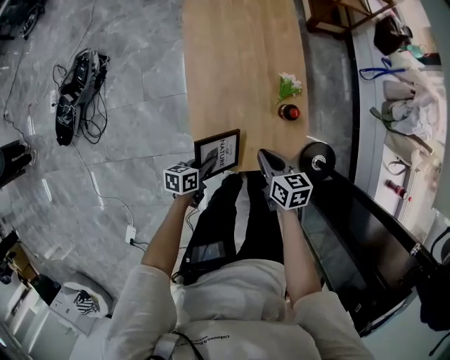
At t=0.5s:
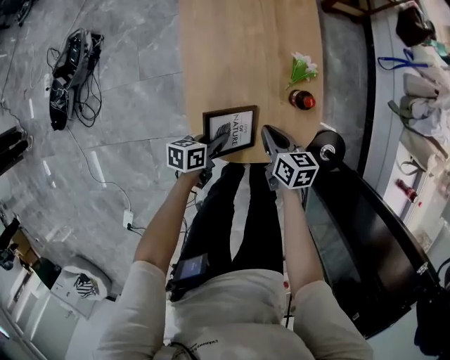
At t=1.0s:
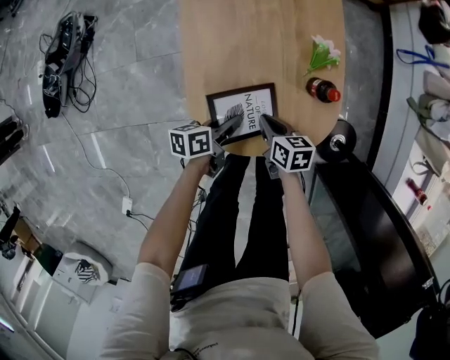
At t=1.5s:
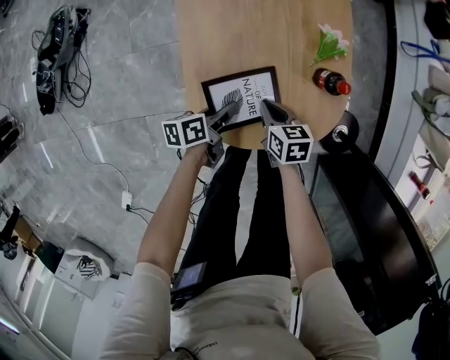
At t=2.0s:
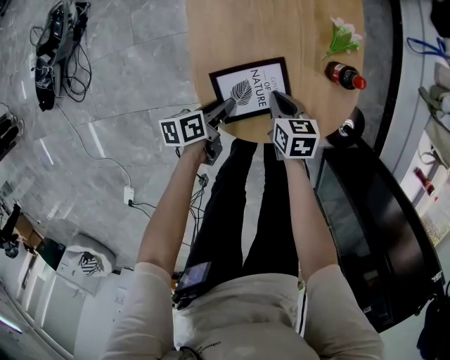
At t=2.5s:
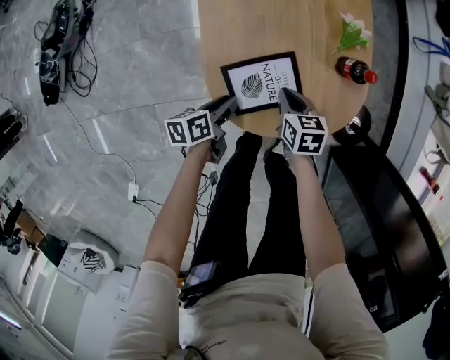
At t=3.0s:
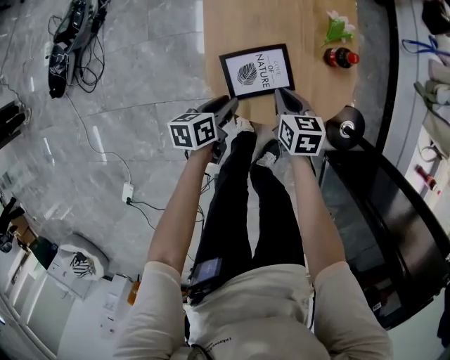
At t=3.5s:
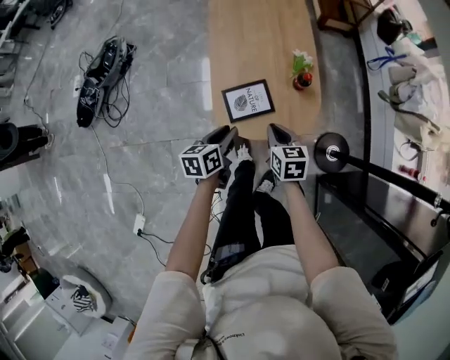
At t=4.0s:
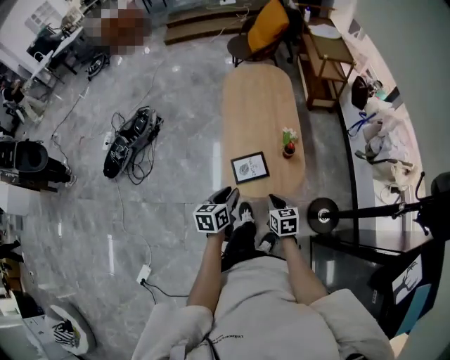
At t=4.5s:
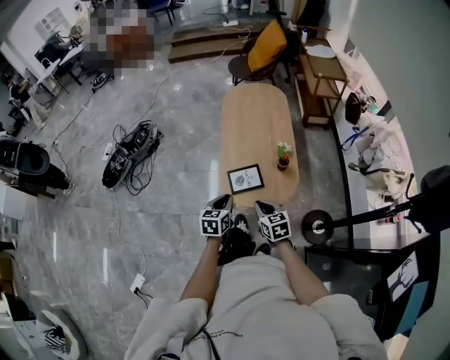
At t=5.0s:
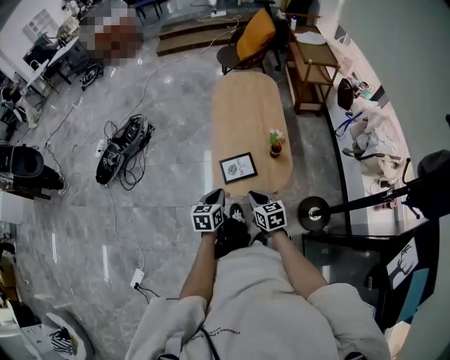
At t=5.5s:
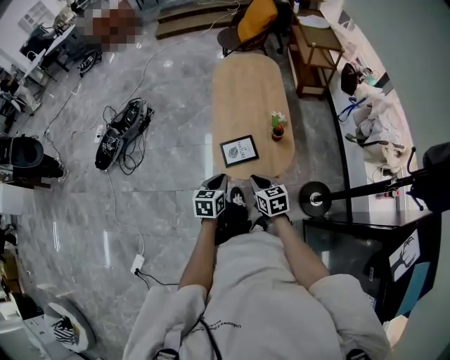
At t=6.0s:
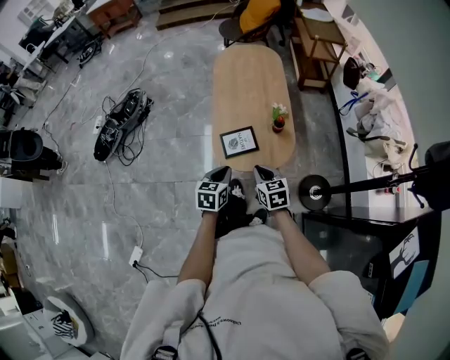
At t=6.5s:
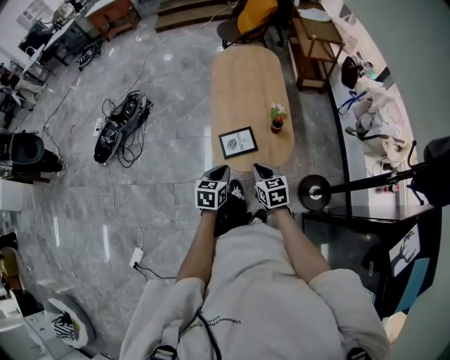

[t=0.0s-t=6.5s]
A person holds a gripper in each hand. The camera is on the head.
t=0.0s to t=2.0s: The right gripper is displaced downward by roughly 25 cm, while the left gripper travels downward by some 15 cm, and opens.
t=2.0s to t=4.5s: Both grippers move upward and backward, approximately 50 cm. The right gripper changes its angle by about 30 degrees. The left gripper rotates roughly 50 degrees.
t=4.5s to t=6.5s: The grippers stay close to where they were, moving slightly.

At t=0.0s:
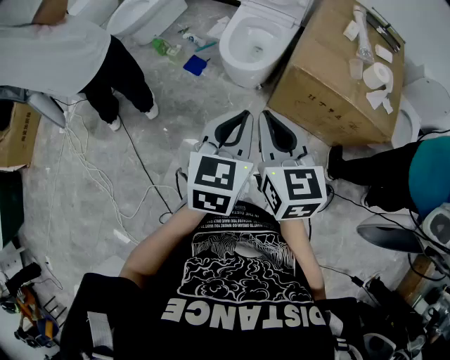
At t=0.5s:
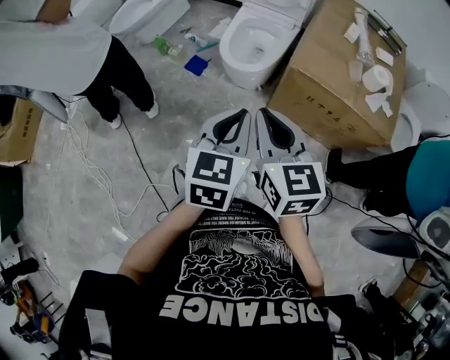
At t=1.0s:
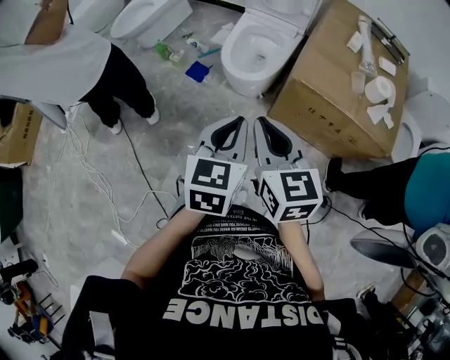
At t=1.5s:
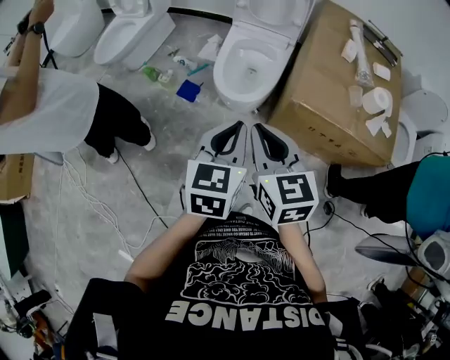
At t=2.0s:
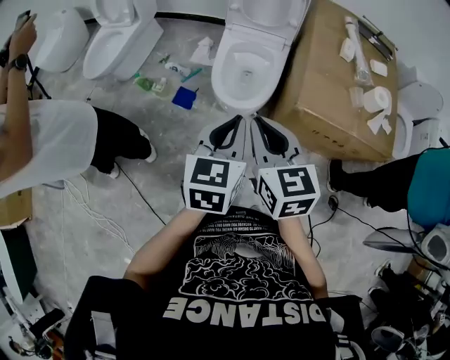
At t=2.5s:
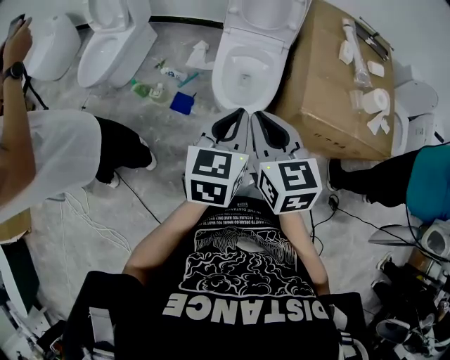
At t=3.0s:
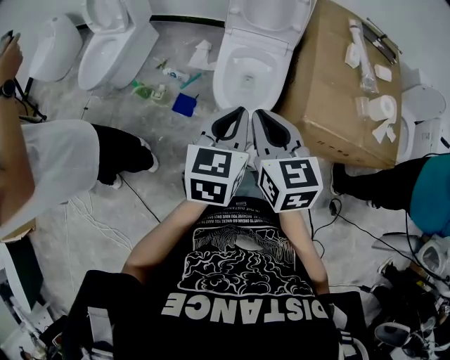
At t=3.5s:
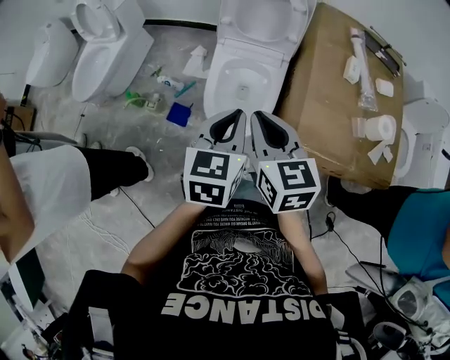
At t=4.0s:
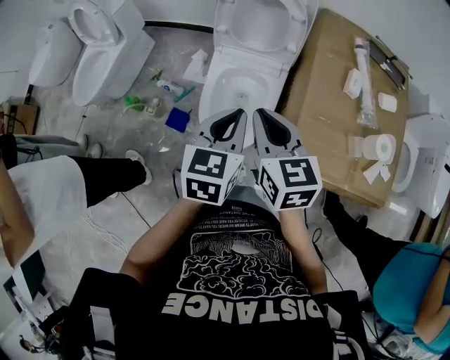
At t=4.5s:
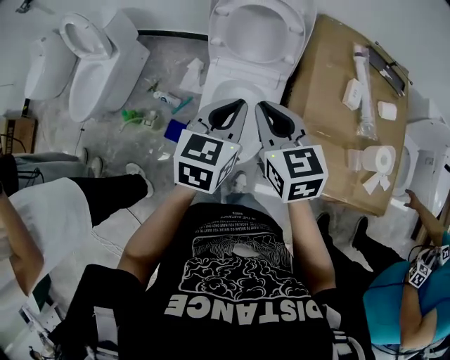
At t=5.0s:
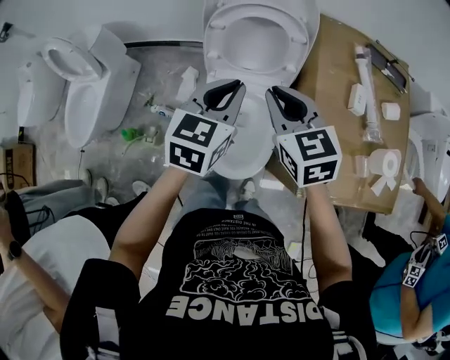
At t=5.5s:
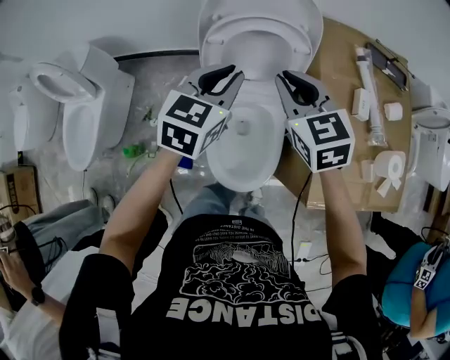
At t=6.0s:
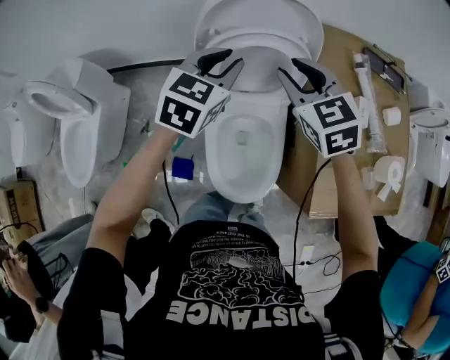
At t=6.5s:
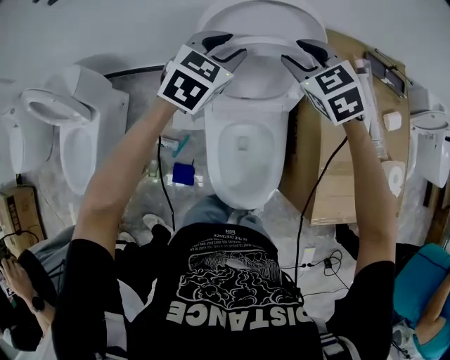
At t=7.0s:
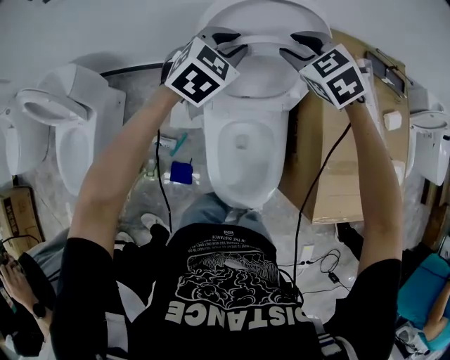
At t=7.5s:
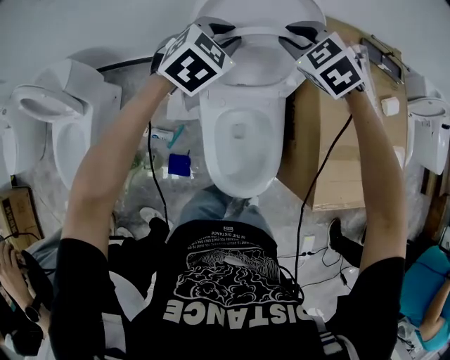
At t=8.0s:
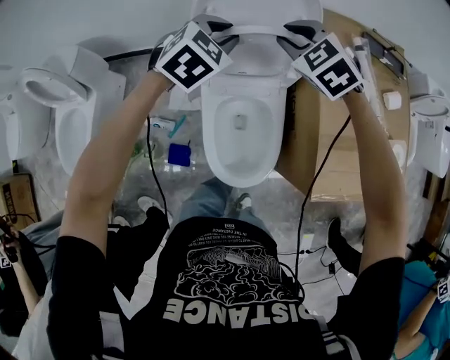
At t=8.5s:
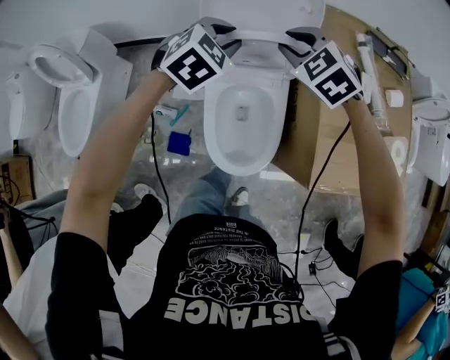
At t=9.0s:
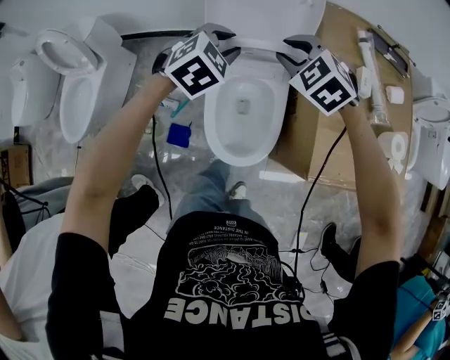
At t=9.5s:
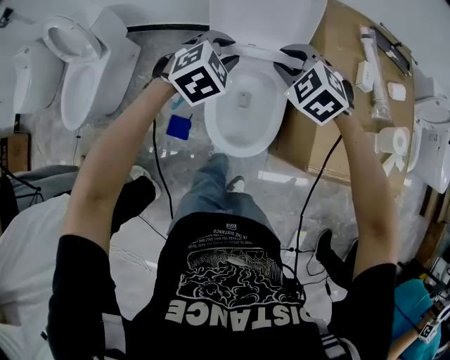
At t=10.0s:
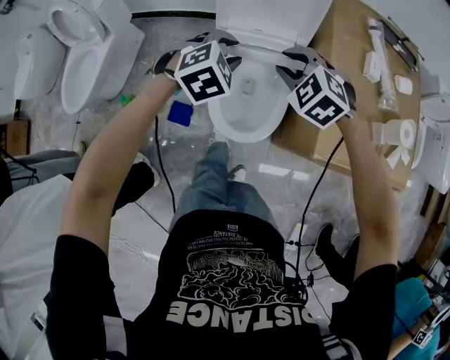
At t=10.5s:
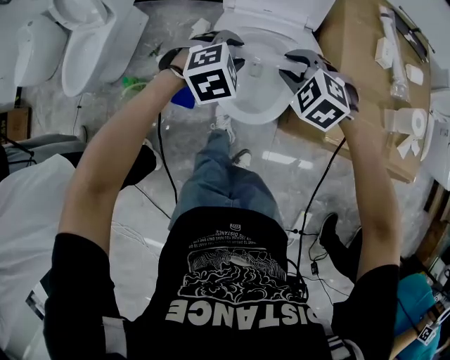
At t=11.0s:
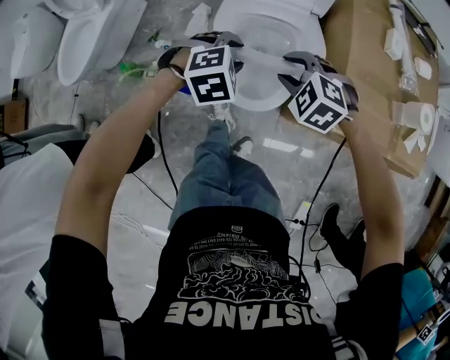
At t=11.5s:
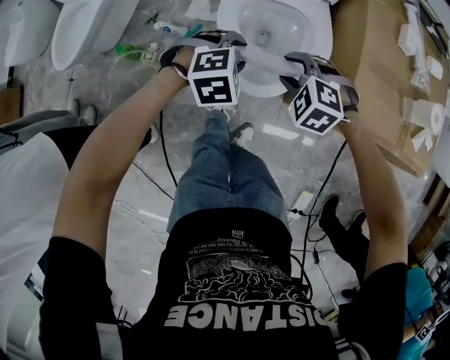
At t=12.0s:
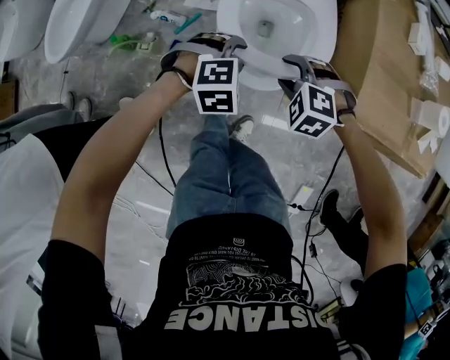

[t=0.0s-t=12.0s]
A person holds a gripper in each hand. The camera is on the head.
t=0.0s to t=2.0s: The two grippers go some 20 cm forward.
t=2.0s to t=4.0s: The two grippers go roughly 25 cm forward.
t=4.0s to t=6.0s: Both grippers move forward, some 35 cm. The right gripper swivels about 20 degrees, and opens up; the left gripper changes its angle by about 30 degrees.
t=6.0s to t=8.0s: The right gripper reaches roughly 10 cm forward, then returns, and rotates some 30 degrees, while the left gripper rotates about 30 degrees.
t=8.0s to t=10.0s: Both grippers move backward, approximately 25 cm.
t=10.0s to t=12.0s: The grippers both shift downward and backward by approximately 25 cm. The right gripper rotates roughly 20 degrees.

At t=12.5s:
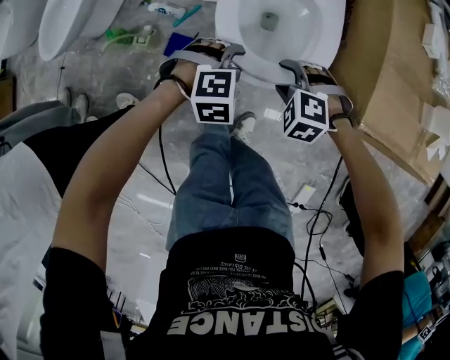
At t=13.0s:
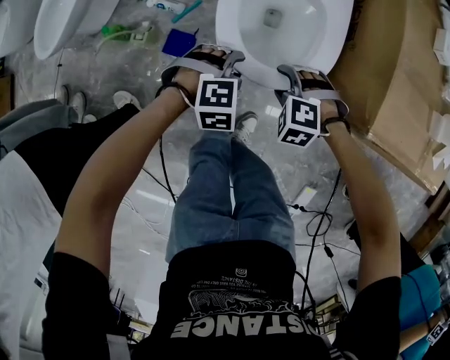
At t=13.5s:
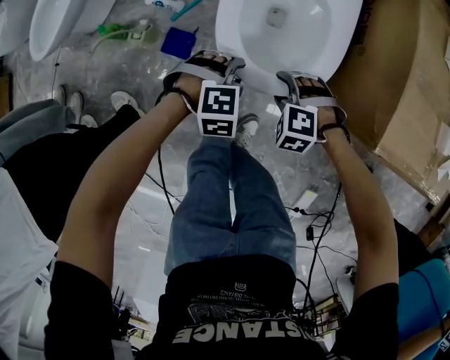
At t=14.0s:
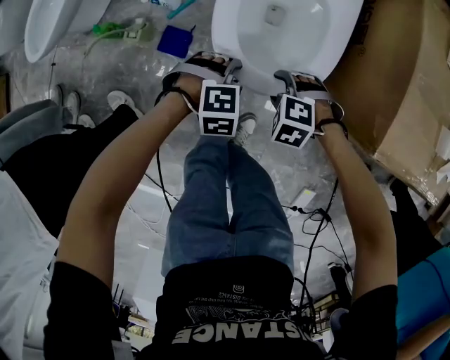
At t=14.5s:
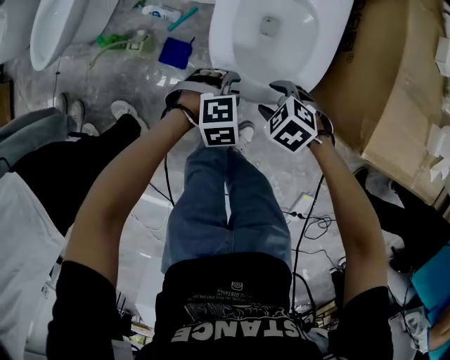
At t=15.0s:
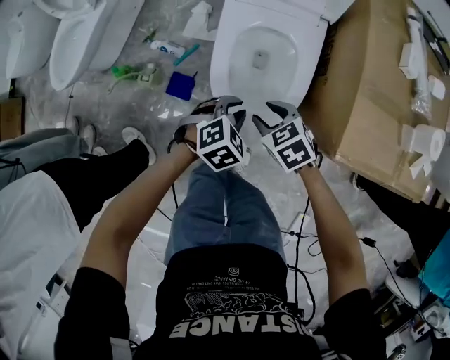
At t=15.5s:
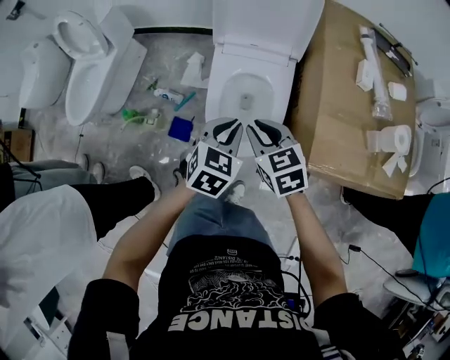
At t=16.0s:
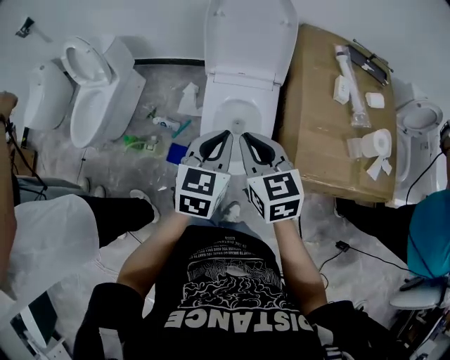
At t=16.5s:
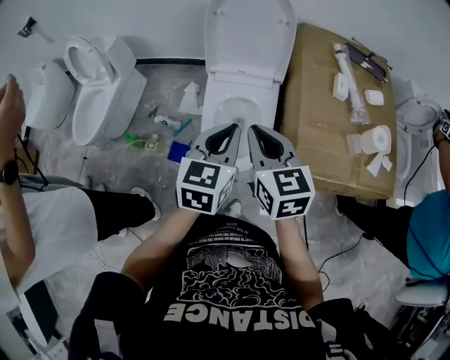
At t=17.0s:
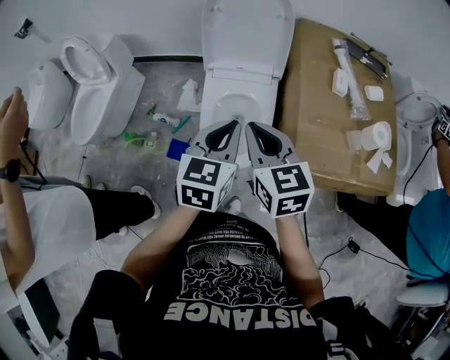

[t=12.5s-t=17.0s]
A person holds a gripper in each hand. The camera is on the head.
t=12.5s to t=14.5s: Both grippers move downward, approximately 10 cm. The right gripper rotates about 30 degrees.
t=14.5s to t=17.0s: Both grippers travel together upward, about 50 cm. The left gripper tilts its fingers roughly 50 degrees upward, and closes; the right gripper angles its fingers upward, by about 50 degrees, and closes up.

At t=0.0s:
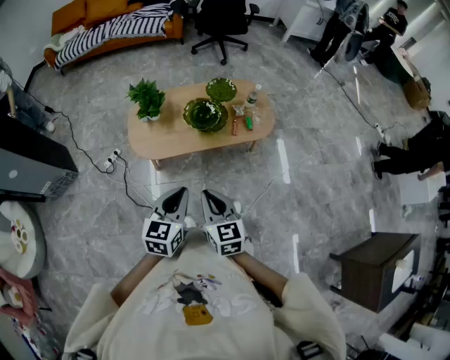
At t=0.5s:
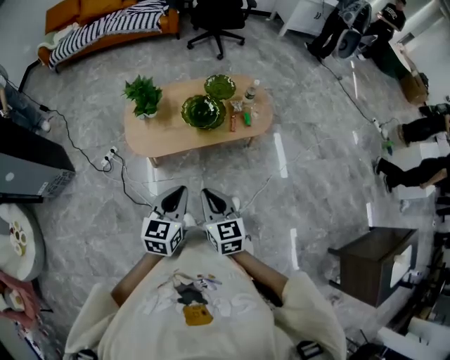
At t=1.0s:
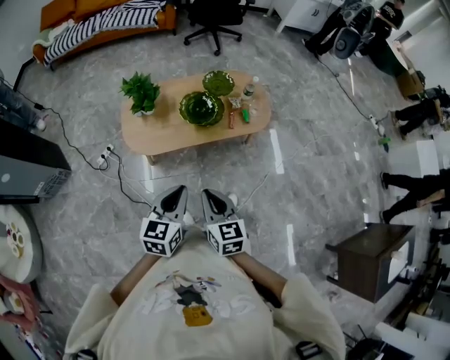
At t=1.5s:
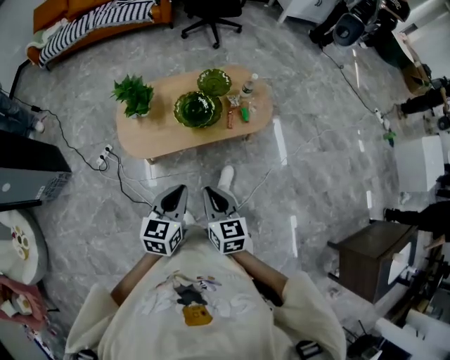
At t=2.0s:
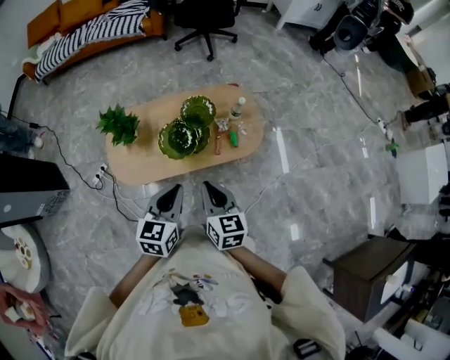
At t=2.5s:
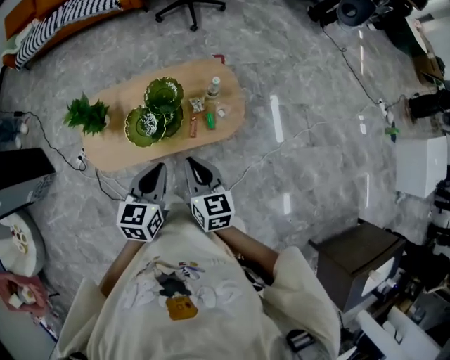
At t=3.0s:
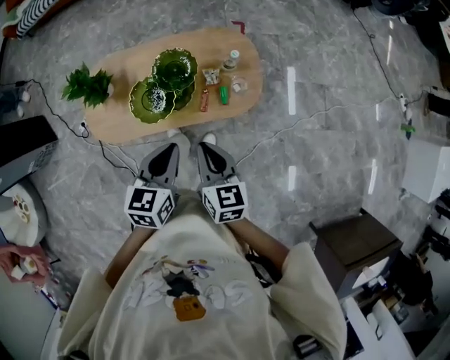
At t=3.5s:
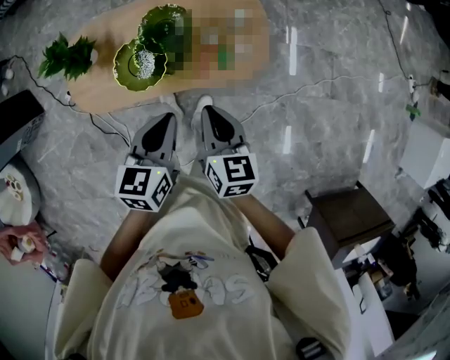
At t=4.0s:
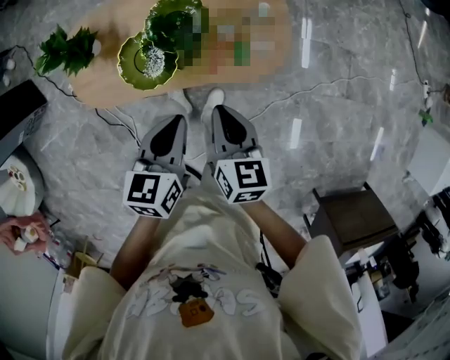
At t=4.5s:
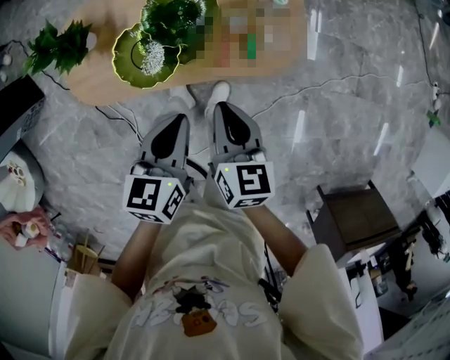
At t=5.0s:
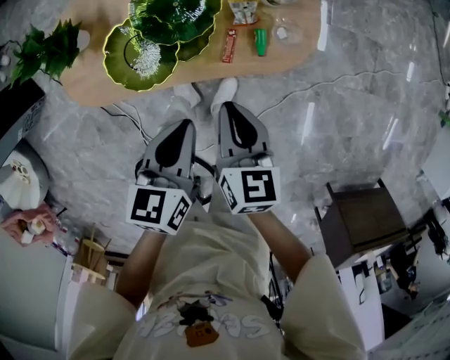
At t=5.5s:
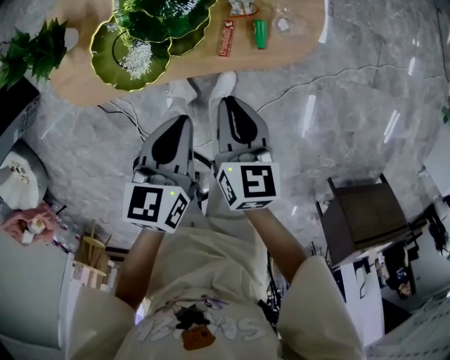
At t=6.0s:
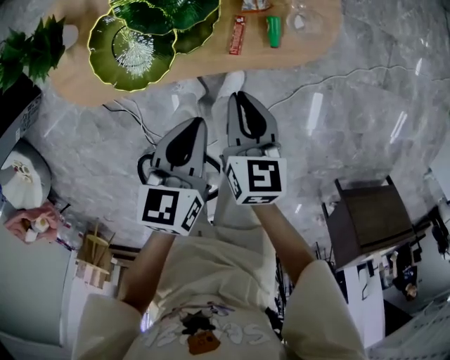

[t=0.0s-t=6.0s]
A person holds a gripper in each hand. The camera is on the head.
t=0.0s to t=2.0s: The left gripper goes some 25 cm forward. The right gripper is displaced forward and to the right by roughly 25 cm.
t=2.0s to t=4.0s: The right gripper heads forward, downward and to the right, covering some 25 cm, while the left gripper travels downward, forward and to the right by about 25 cm, and turns by roughly 20 degrees.
t=4.0s to t=6.0s: Both grippers travel together downward, roughly 20 cm.
